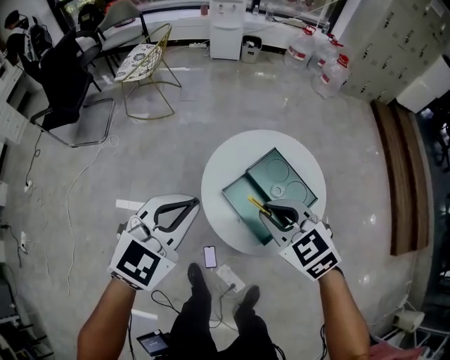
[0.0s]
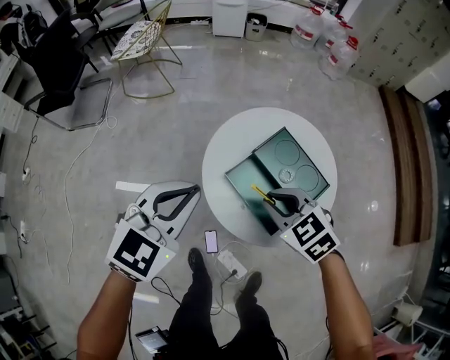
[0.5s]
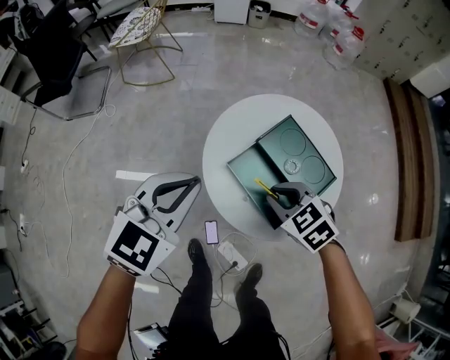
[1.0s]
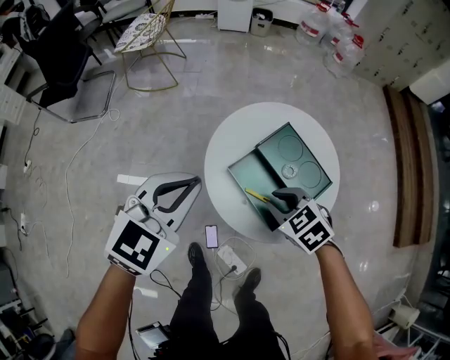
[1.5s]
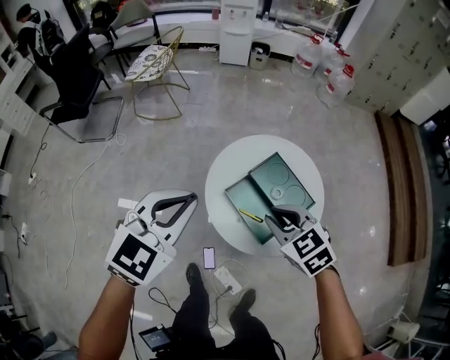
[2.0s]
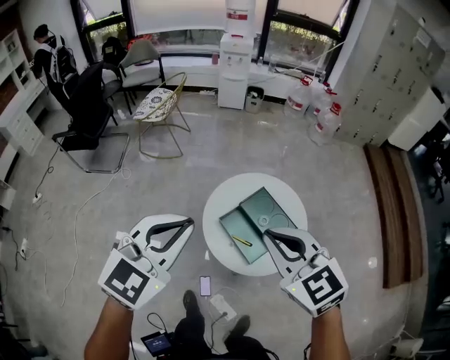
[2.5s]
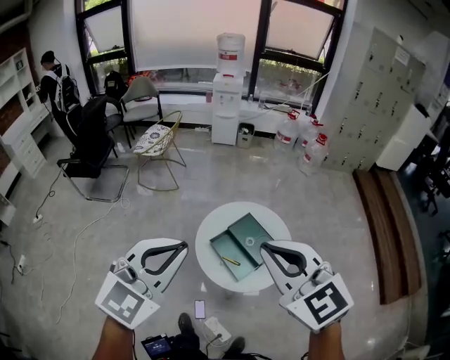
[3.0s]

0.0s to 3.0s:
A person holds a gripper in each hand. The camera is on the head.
0.0s to 1.5s: The right gripper shifts roughly 20 cm downward, while the left gripper shifts some 10 cm downward.
1.5s to 3.0s: The right gripper heads upward, covering roughly 60 cm, and angles its fingers upward, by roughly 40 degrees; the left gripper travels upward and backward by approximately 50 cm.

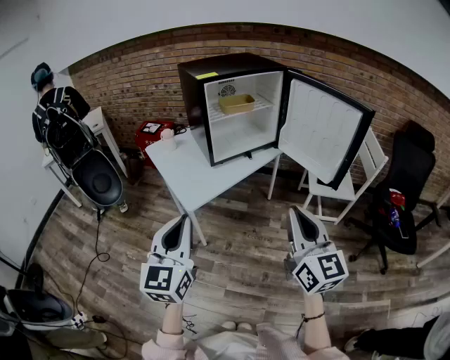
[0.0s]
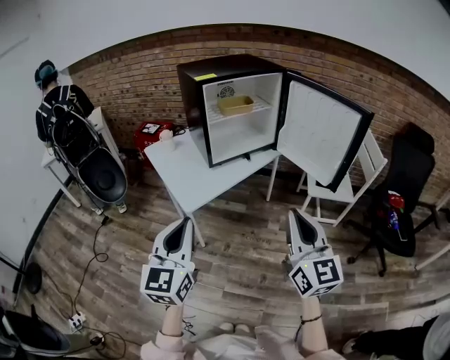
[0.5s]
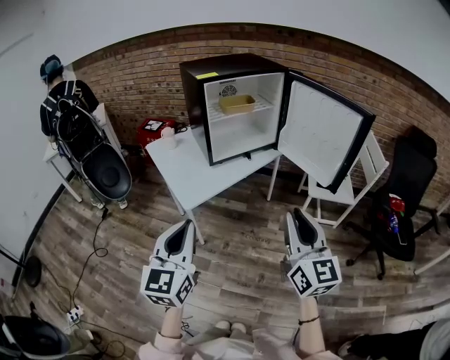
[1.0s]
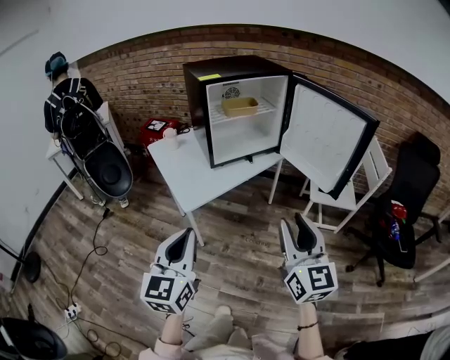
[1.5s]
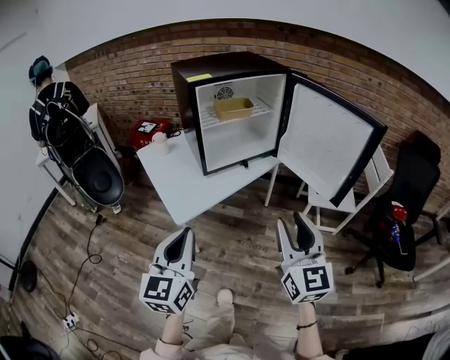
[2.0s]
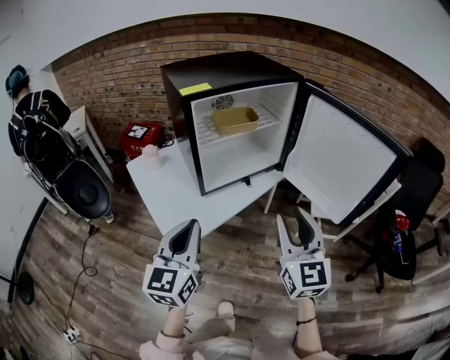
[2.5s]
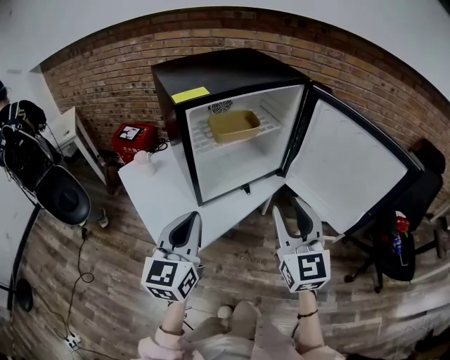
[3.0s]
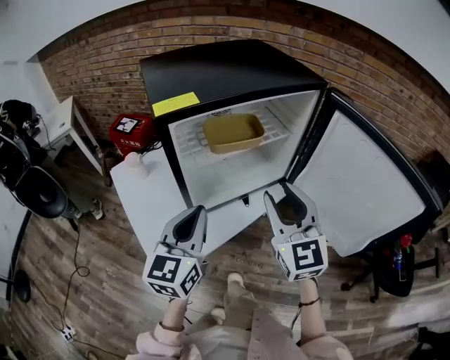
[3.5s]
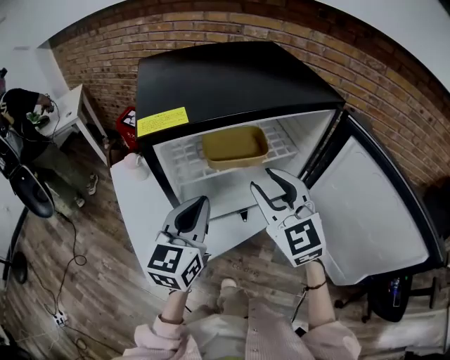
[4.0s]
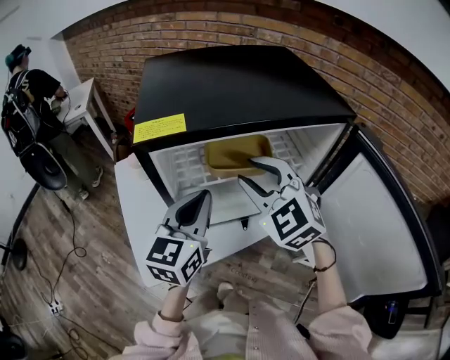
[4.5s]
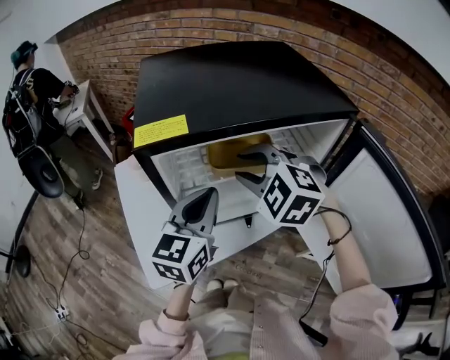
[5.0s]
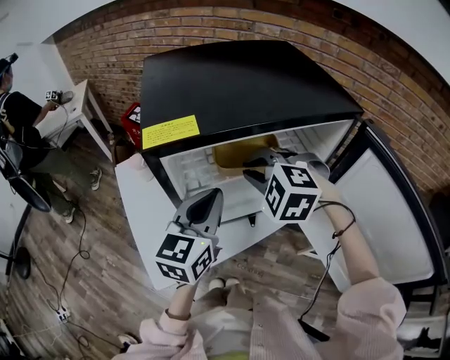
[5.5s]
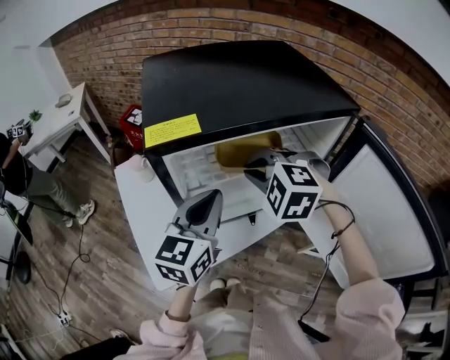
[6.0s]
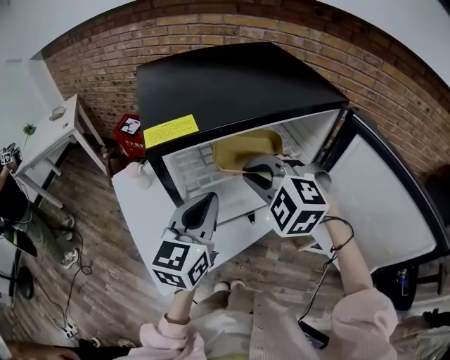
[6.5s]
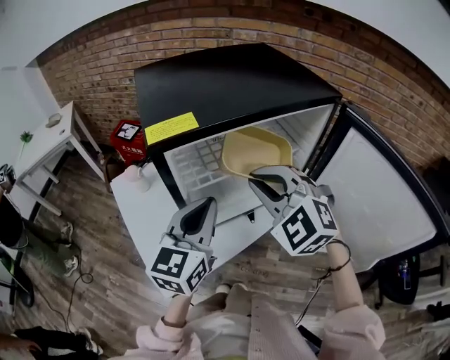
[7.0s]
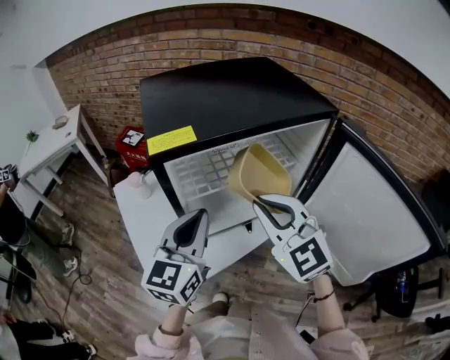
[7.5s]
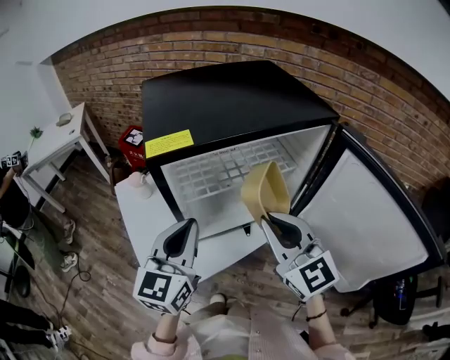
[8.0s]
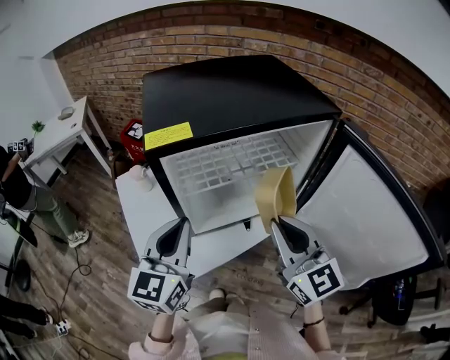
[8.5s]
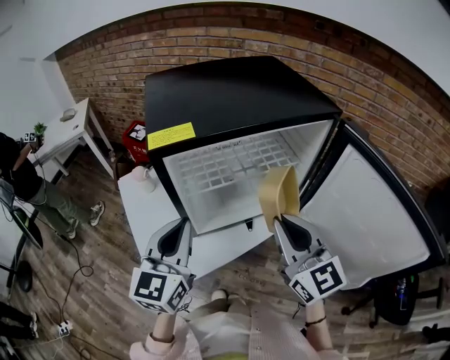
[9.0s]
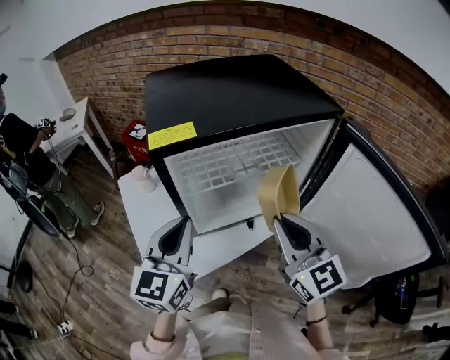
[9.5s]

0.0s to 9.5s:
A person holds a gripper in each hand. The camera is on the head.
0.0s to 2.0s: The two grippers go about 5 cm forward. The right gripper opens.
2.0s to 4.0s: Both grippers are carried forward, roughly 40 cm. The right gripper swivels approximately 30 degrees.
4.0s to 5.5s: The right gripper is displaced forward by about 5 cm, tips its fingers downward by about 40 degrees, and closes up.
5.5s to 7.5s: The left gripper goes approximately 5 cm backward. The right gripper heads backward and upward, covering about 10 cm, and tips its fingers upward by approximately 40 degrees.
7.5s to 9.5s: The right gripper changes place by approximately 5 cm, and rotates some 30 degrees.

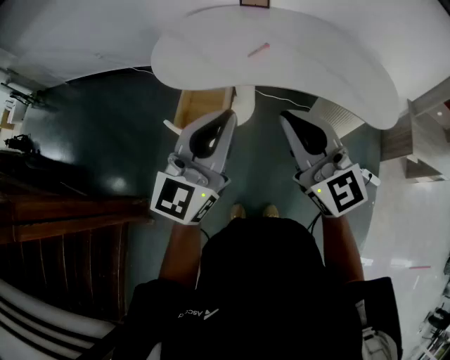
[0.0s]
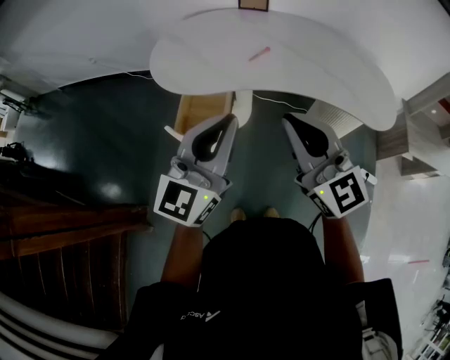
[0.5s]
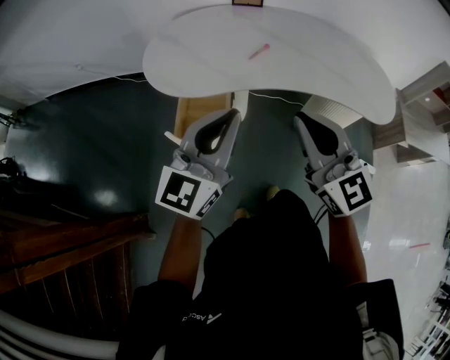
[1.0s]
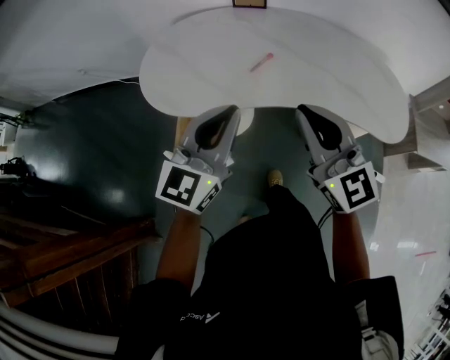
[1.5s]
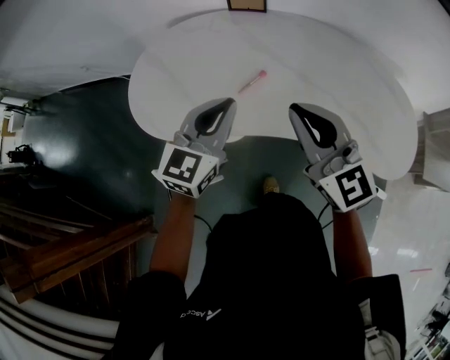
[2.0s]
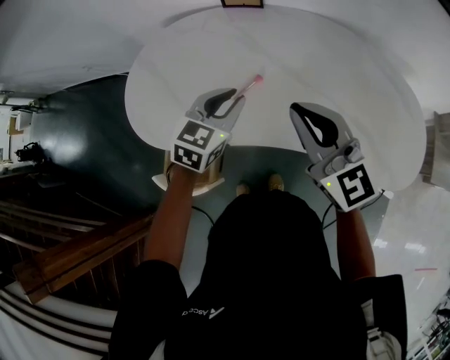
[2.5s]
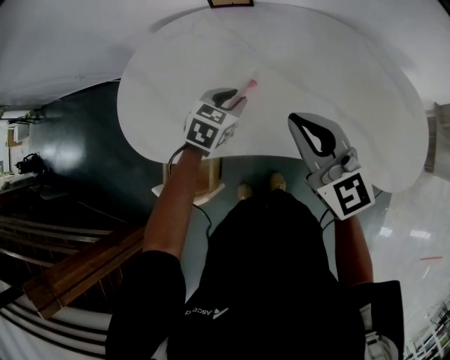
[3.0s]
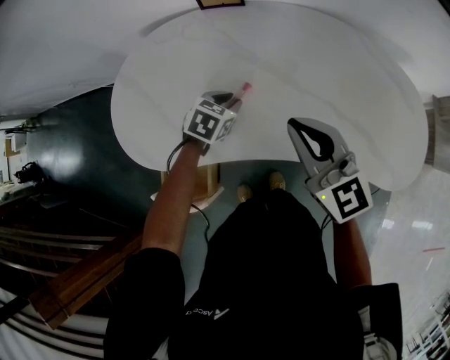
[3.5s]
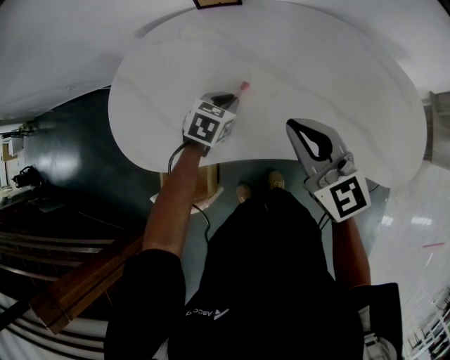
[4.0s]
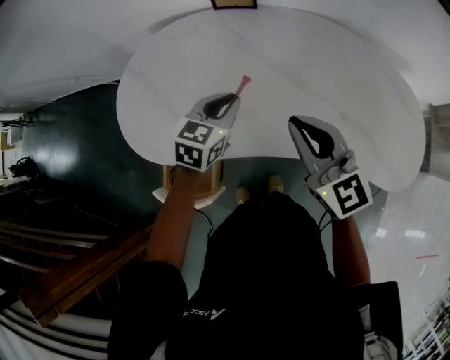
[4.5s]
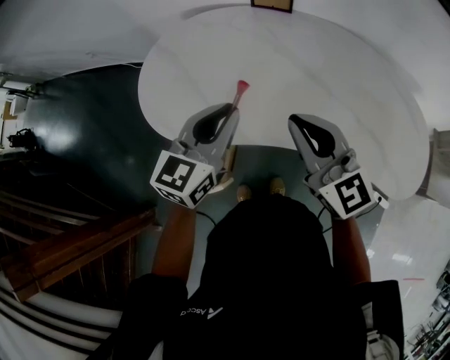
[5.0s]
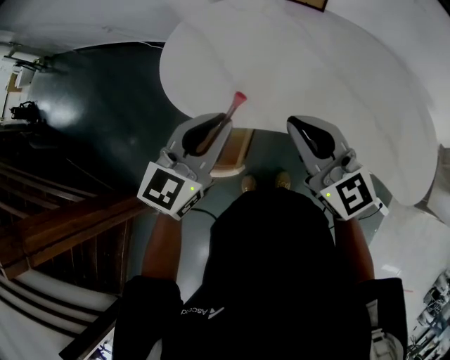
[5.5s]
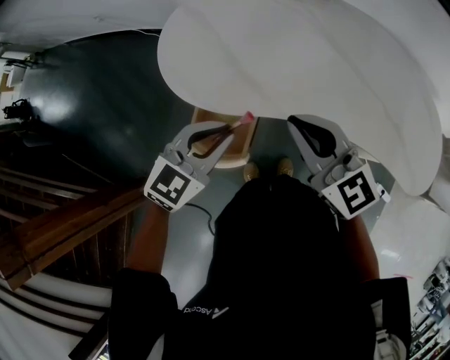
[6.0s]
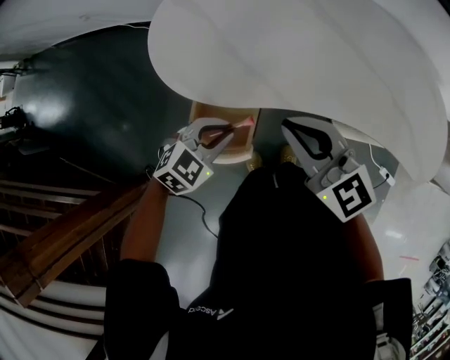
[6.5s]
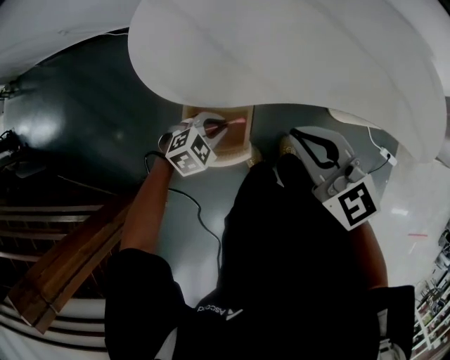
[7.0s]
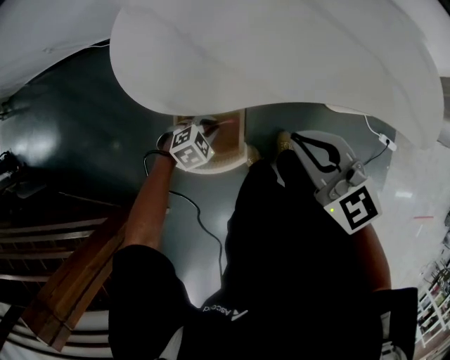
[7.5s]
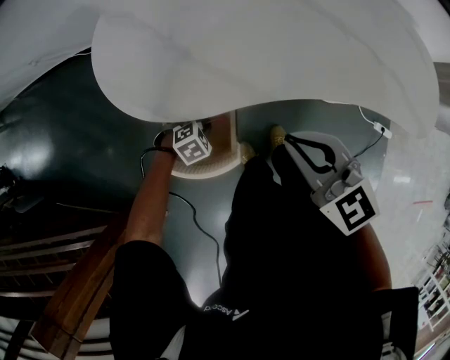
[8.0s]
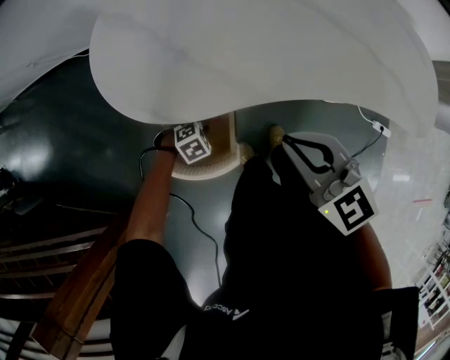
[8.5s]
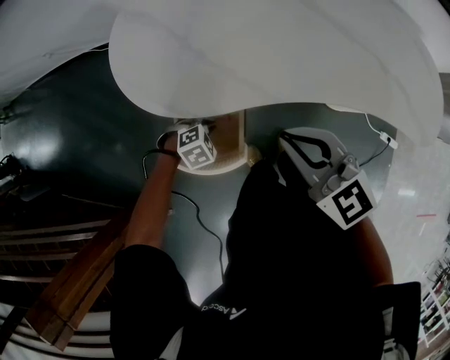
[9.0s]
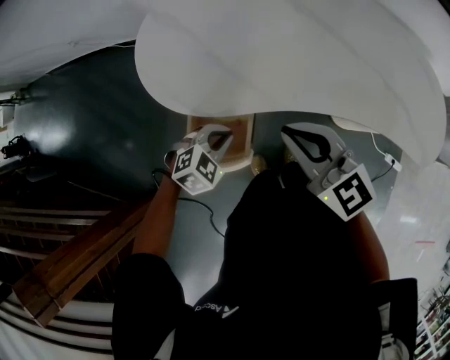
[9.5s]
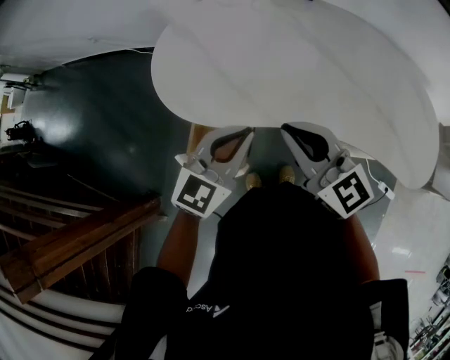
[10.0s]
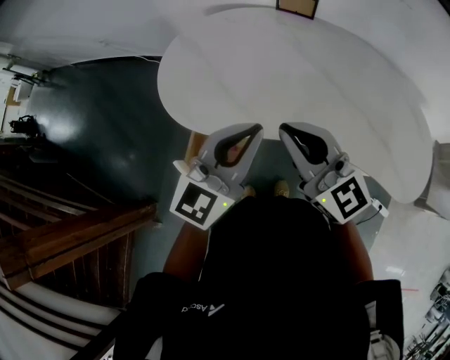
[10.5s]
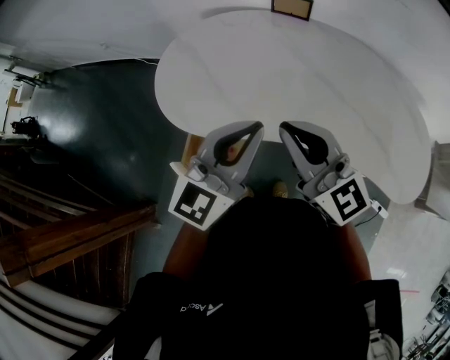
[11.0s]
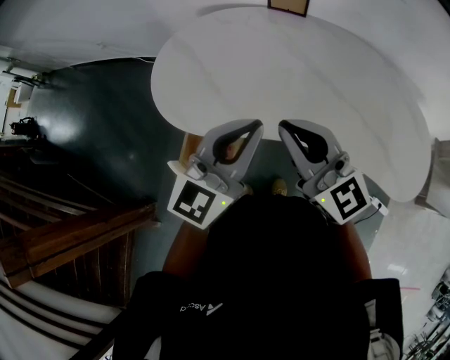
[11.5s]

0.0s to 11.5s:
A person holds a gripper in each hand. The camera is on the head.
0.0s to 2.0s: The grippers both shift forward by roughly 30 cm.
2.0s to 4.0s: The right gripper heads forward and downward, covering roughly 10 cm; the left gripper is displaced downward and forward by some 25 cm, and tilts its fingers some 40 degrees downward.
4.0s to 6.0s: The right gripper moves to the left and backward, roughly 25 cm; the left gripper goes about 35 cm backward, to the left and upward, and turns by roughly 30 degrees.
6.0s to 7.5s: The right gripper shifts approximately 10 cm downward. Meanwhile the left gripper moves downward, roughly 30 cm, and angles its fingers downward, by roughly 40 degrees.
7.5s to 9.5s: The left gripper shifts roughly 15 cm upward.
9.5s to 11.5s: The left gripper goes about 30 cm upward and to the right, and tilts its fingers approximately 60 degrees upward. The right gripper moves upward and to the right, some 10 cm.

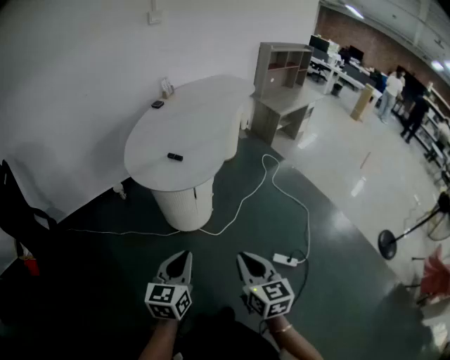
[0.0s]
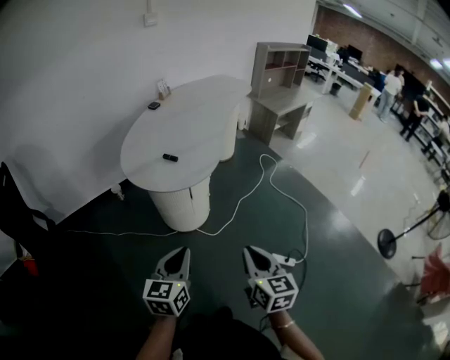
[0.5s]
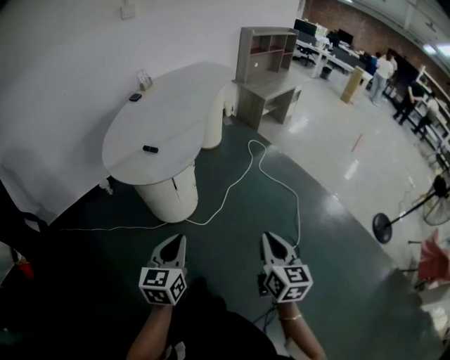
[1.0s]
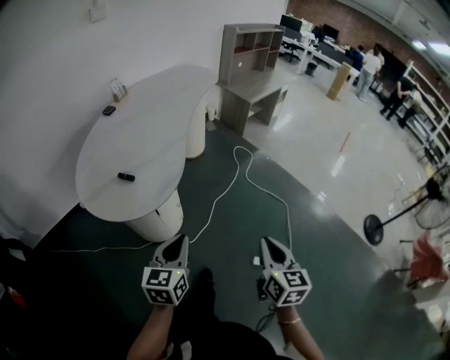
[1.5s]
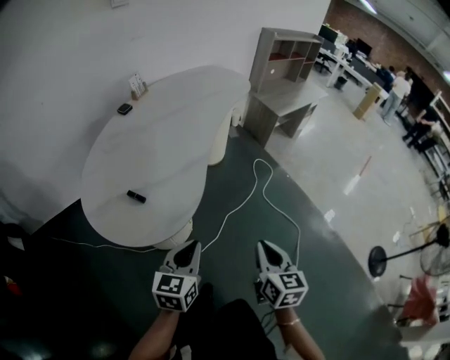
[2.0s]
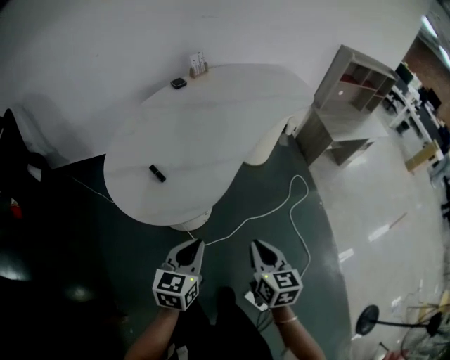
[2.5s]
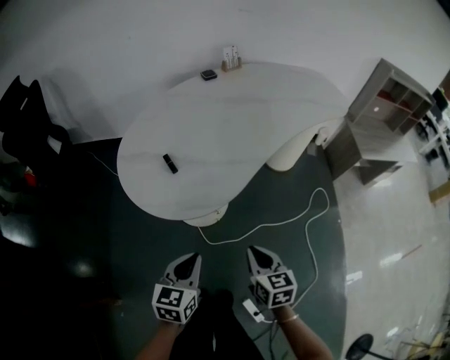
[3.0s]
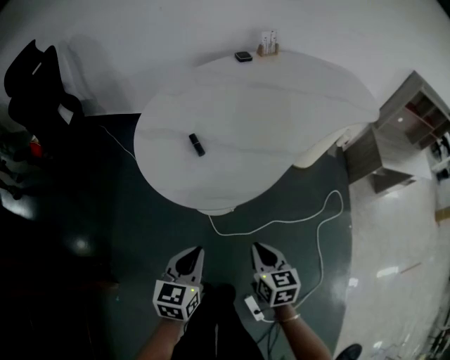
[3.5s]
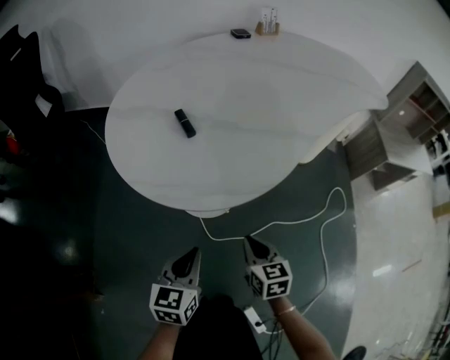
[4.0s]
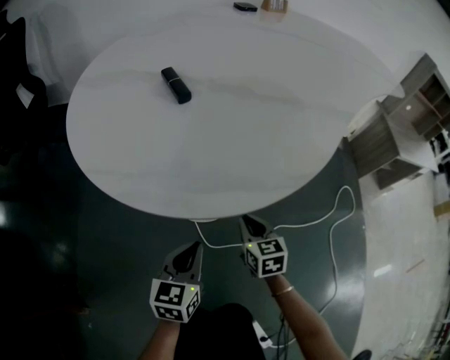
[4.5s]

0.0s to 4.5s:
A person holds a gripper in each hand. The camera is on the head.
0.0s to 2.0s: The right gripper is displaced forward and to the right by about 35 cm, while the left gripper is displaced forward by about 30 cm.
2.0s to 4.5s: Both grippers travel together downward, roughly 40 cm. The right gripper changes its angle by approximately 50 degrees; the left gripper turns by roughly 40 degrees.
